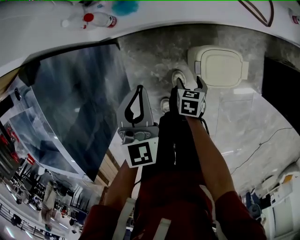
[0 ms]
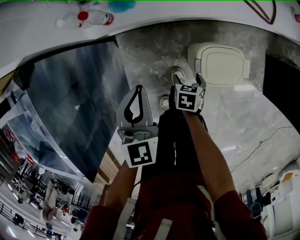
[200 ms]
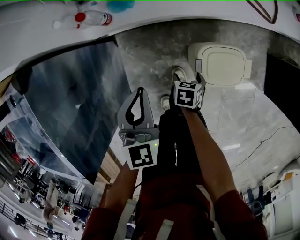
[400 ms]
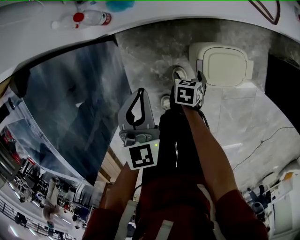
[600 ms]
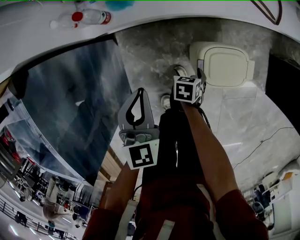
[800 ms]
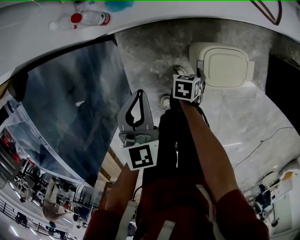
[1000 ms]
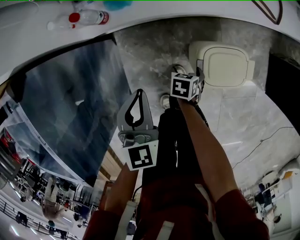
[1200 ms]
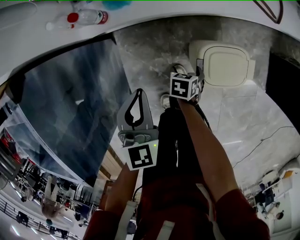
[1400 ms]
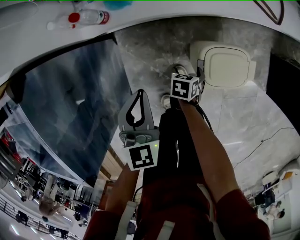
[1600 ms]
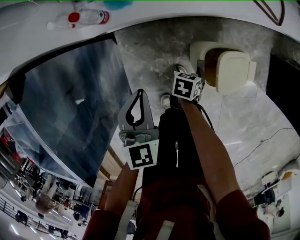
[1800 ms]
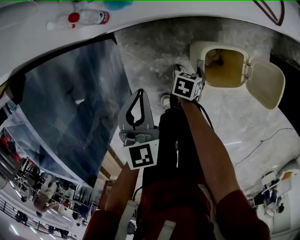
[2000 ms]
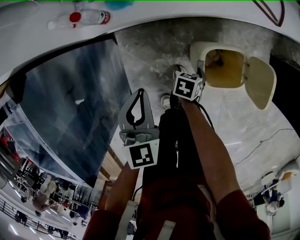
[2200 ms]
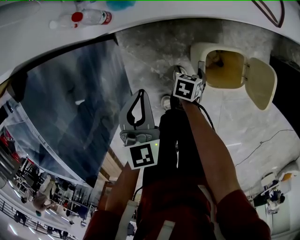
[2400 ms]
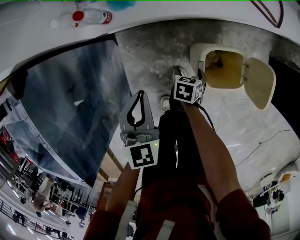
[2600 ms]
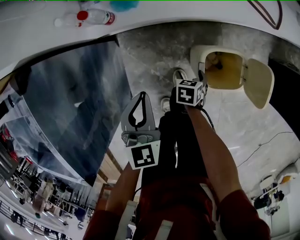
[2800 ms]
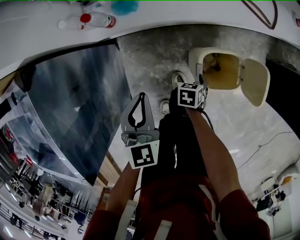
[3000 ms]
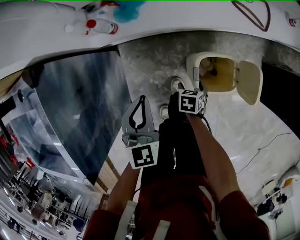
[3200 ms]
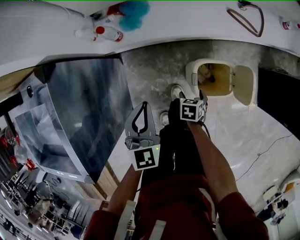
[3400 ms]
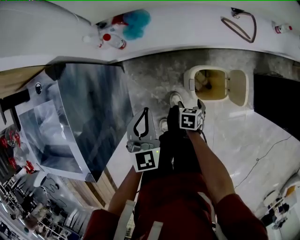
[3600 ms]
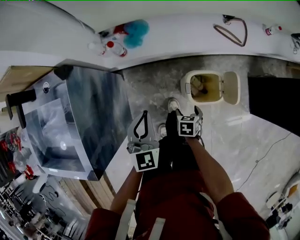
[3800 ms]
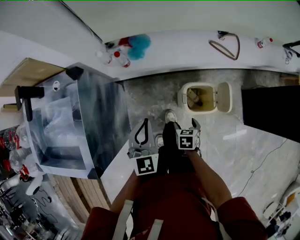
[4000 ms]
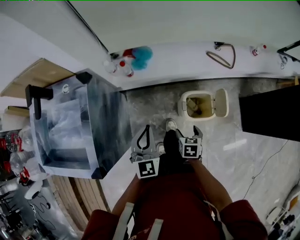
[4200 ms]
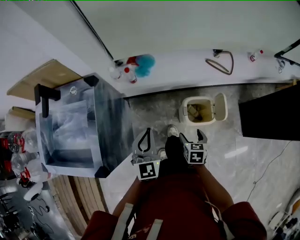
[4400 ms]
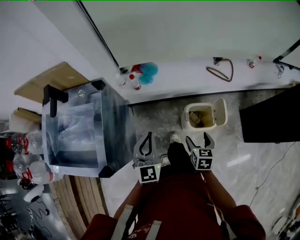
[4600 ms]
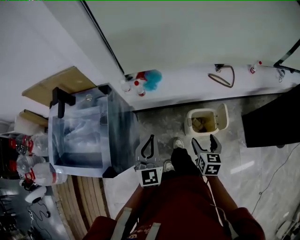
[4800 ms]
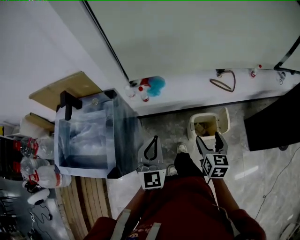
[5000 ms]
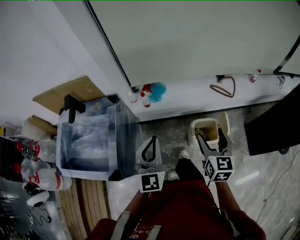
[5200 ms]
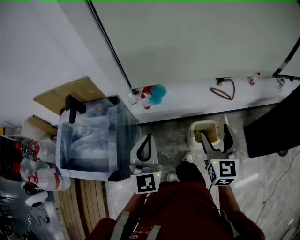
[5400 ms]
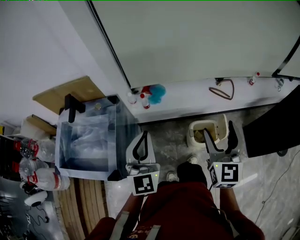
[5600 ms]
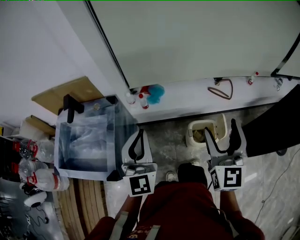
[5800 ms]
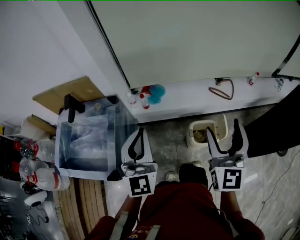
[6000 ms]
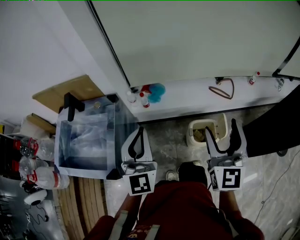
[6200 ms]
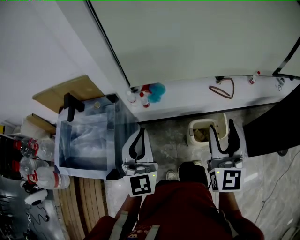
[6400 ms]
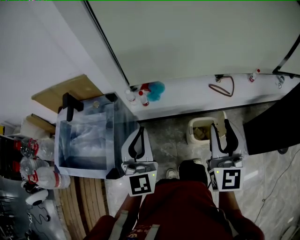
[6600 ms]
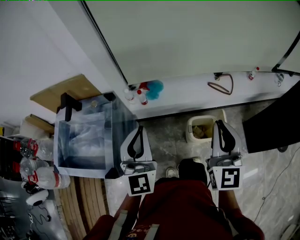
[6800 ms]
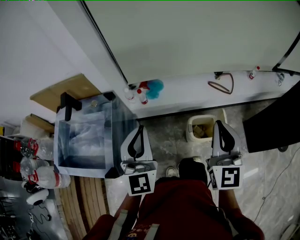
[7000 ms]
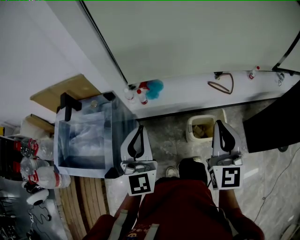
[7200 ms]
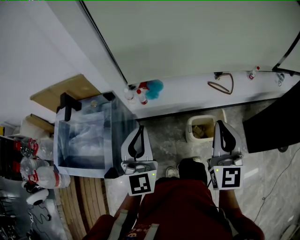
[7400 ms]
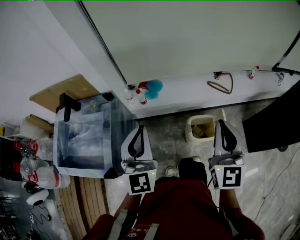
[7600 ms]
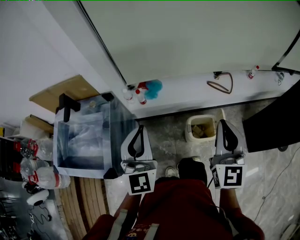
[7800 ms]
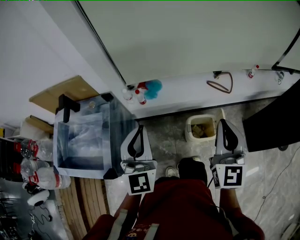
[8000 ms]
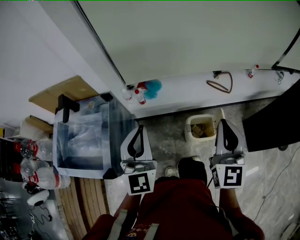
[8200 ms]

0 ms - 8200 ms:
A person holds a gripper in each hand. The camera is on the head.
0 ms - 1600 ms: The grippers both shift downward by about 5 cm.
1600 ms - 3200 ms: The right gripper moves about 5 cm.
3200 ms - 5000 ms: The left gripper moves upward, approximately 30 cm, and turns by approximately 30 degrees; the right gripper shifts approximately 40 cm upward, and tilts its fingers about 50 degrees upward.
5000 ms - 6600 ms: The left gripper heads upward, covering some 10 cm, while the right gripper shifts about 25 cm upward, tilts its fingers approximately 30 degrees upward, and closes.
6600 ms - 8200 ms: The right gripper closes.

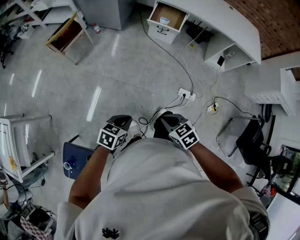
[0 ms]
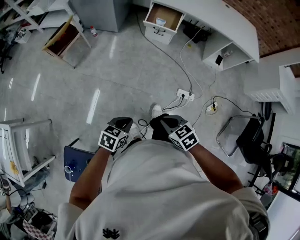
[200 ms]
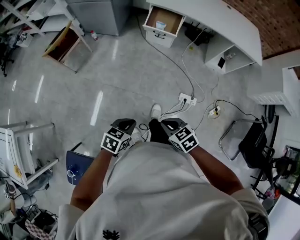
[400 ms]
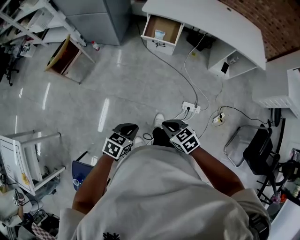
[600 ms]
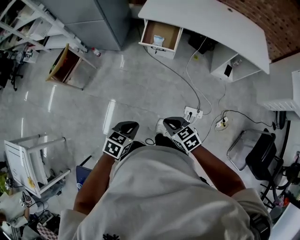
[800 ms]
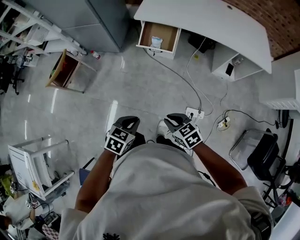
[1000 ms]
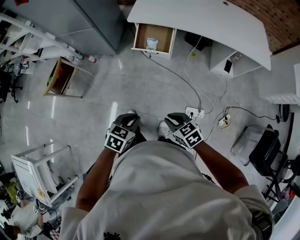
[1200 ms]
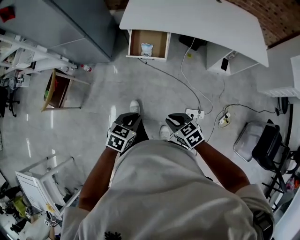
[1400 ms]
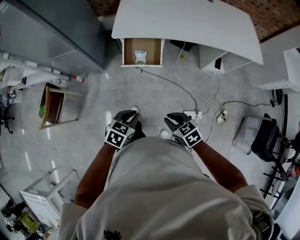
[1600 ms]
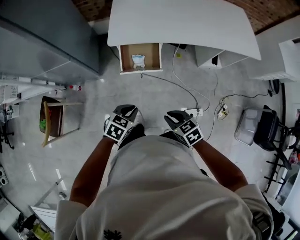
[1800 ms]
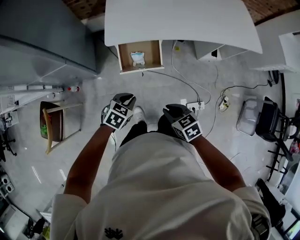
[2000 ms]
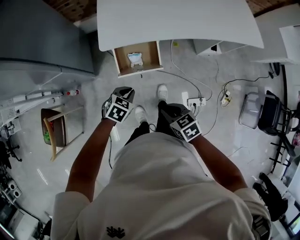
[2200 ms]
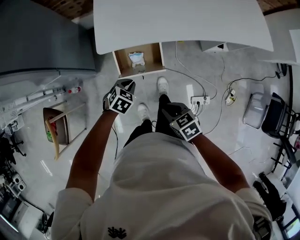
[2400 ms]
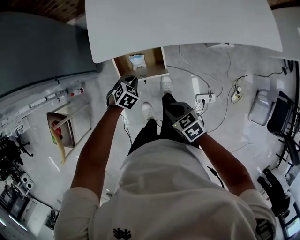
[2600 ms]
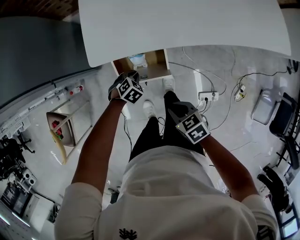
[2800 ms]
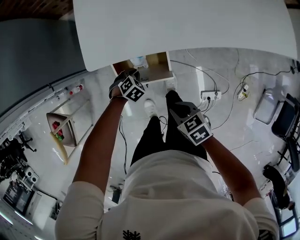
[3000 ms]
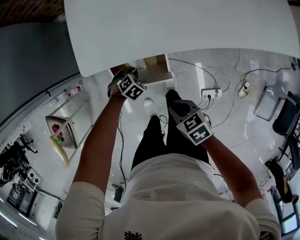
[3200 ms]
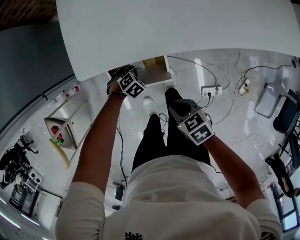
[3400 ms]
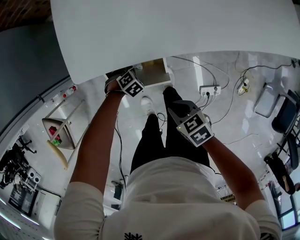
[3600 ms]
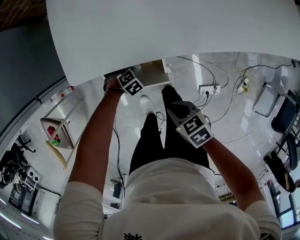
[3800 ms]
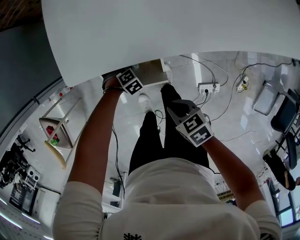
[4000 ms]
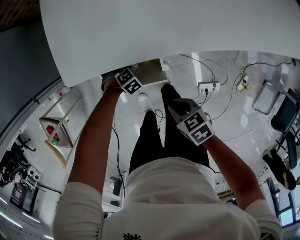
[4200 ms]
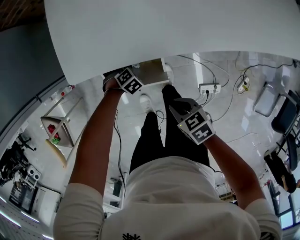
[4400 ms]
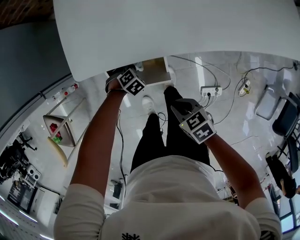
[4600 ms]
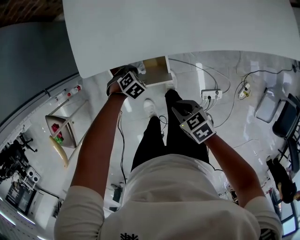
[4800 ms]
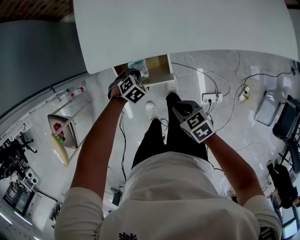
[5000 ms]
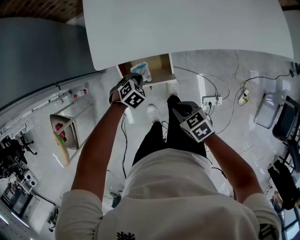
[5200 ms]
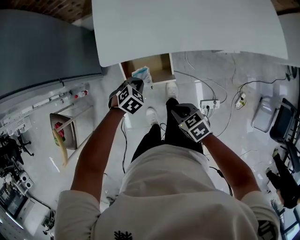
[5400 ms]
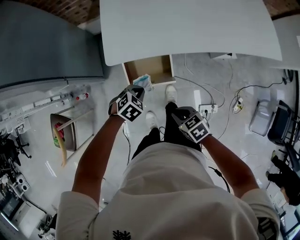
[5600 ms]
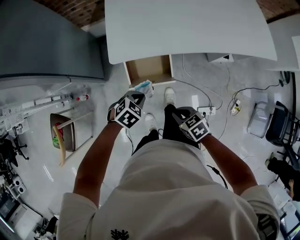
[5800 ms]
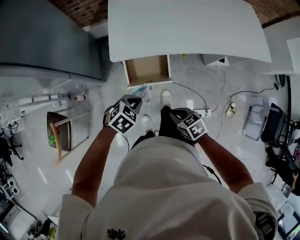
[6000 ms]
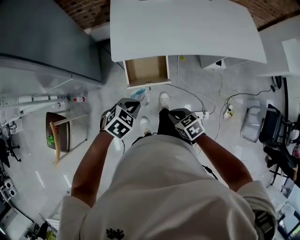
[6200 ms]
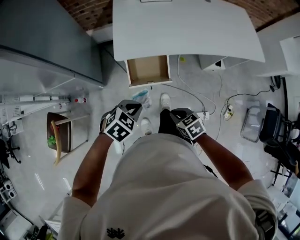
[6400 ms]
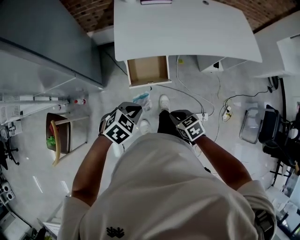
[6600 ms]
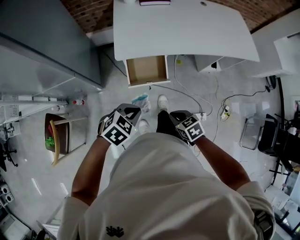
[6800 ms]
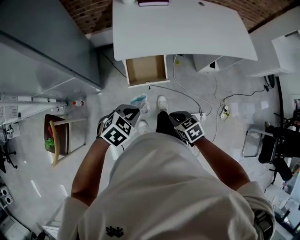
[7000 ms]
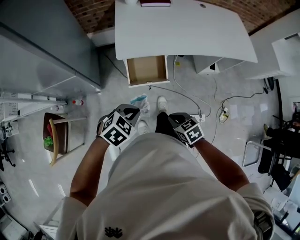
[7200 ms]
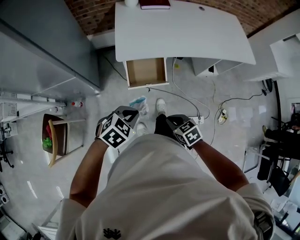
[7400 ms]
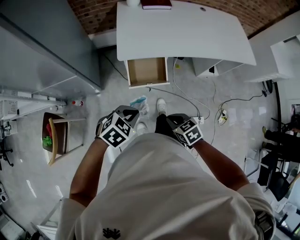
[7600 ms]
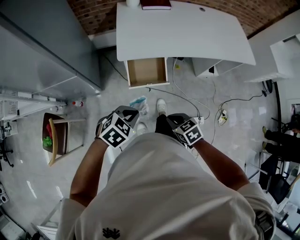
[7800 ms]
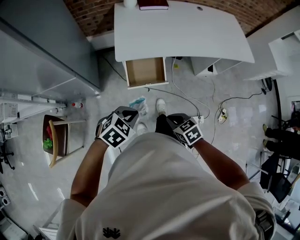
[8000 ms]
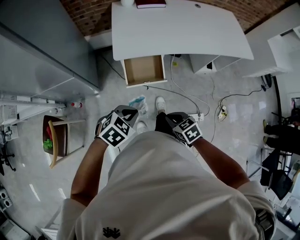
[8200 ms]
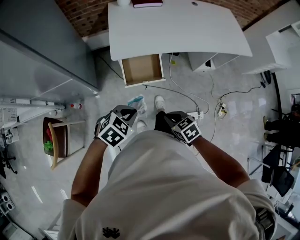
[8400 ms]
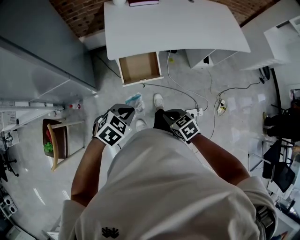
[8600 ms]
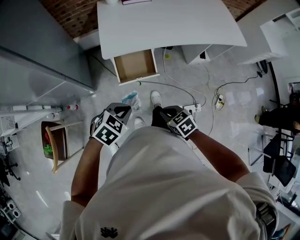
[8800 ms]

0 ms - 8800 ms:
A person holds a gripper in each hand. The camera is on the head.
0 ms - 1400 ms: Both grippers are carried forward, roughly 50 cm.
1400 ms - 3000 ms: The two grippers travel together, some 50 cm. The right gripper changes its angle by approximately 20 degrees; the left gripper changes its angle by roughly 50 degrees.
3000 ms - 4400 ms: The right gripper moves downward, approximately 5 cm, while the left gripper is displaced downward by approximately 10 cm.
4400 ms - 5800 ms: The right gripper shifts approximately 15 cm upward. The left gripper goes some 35 cm upward, and turns by about 30 degrees.
5800 ms - 7400 ms: The right gripper shifts approximately 15 cm backward, upward and to the left, while the left gripper moves backward and upward, roughly 25 cm.
7400 ms - 8800 ms: Both grippers stay put.

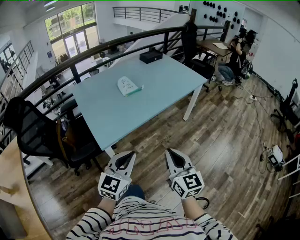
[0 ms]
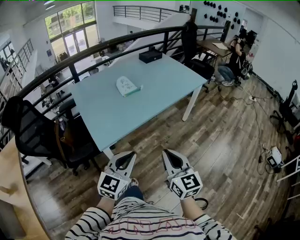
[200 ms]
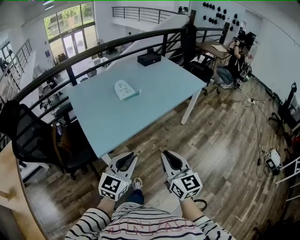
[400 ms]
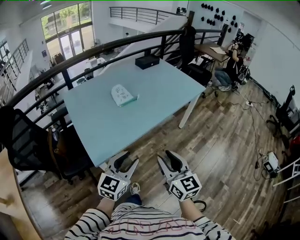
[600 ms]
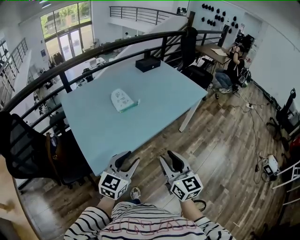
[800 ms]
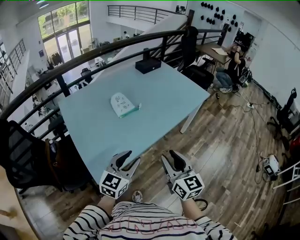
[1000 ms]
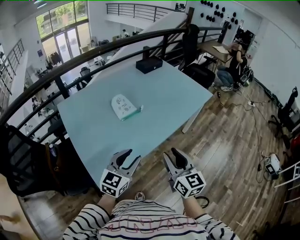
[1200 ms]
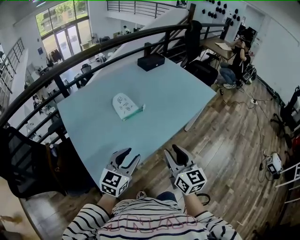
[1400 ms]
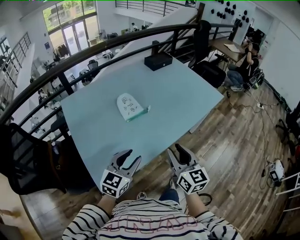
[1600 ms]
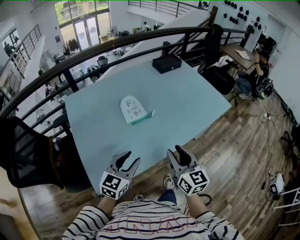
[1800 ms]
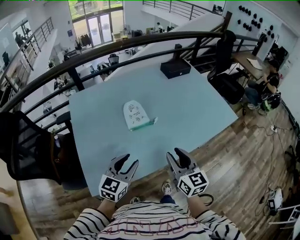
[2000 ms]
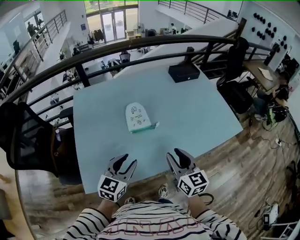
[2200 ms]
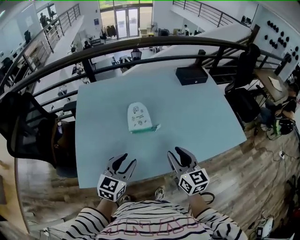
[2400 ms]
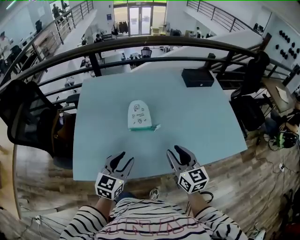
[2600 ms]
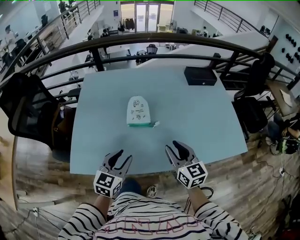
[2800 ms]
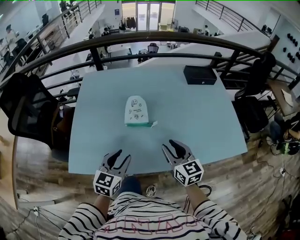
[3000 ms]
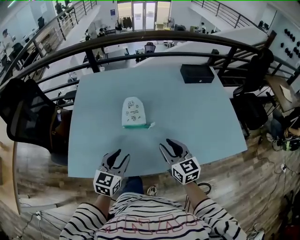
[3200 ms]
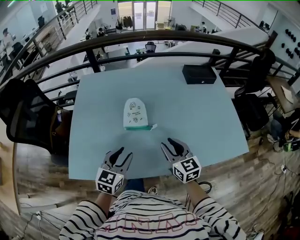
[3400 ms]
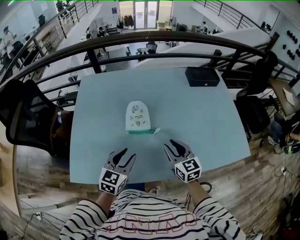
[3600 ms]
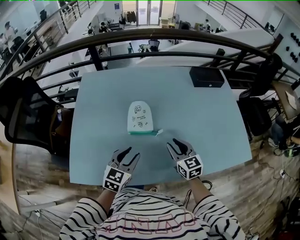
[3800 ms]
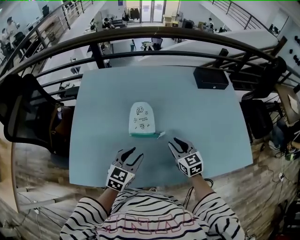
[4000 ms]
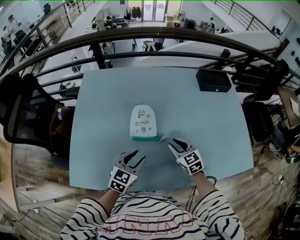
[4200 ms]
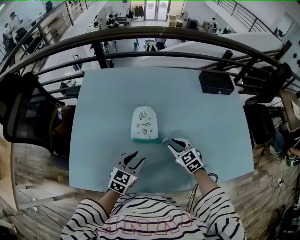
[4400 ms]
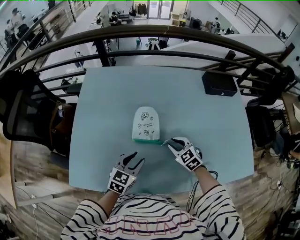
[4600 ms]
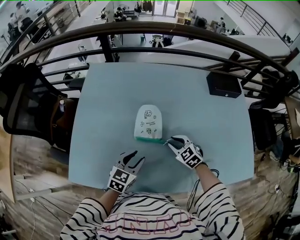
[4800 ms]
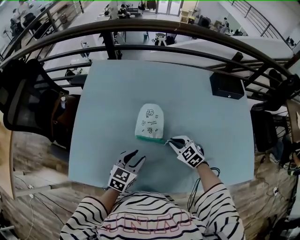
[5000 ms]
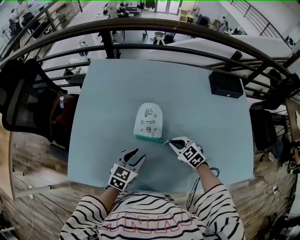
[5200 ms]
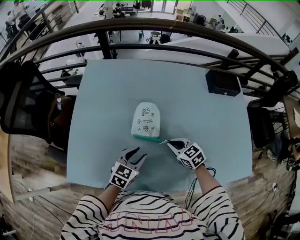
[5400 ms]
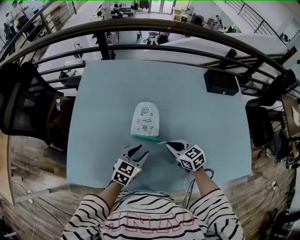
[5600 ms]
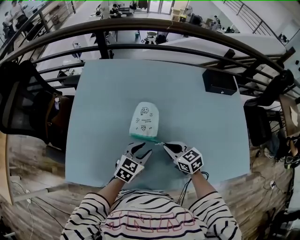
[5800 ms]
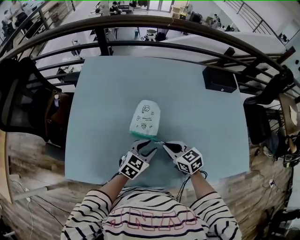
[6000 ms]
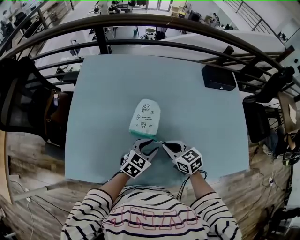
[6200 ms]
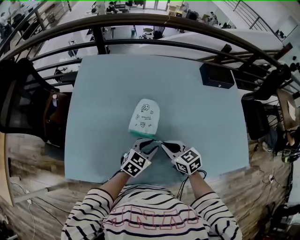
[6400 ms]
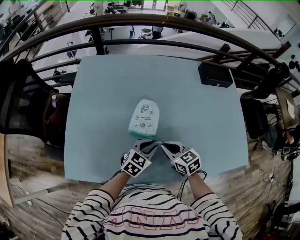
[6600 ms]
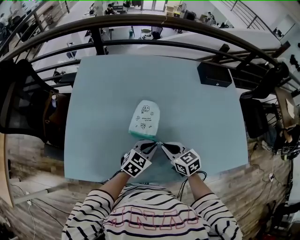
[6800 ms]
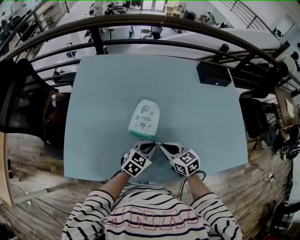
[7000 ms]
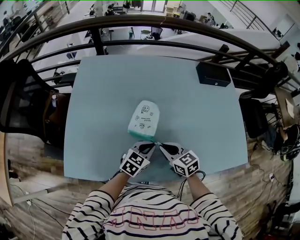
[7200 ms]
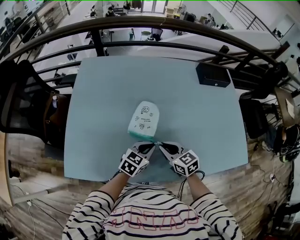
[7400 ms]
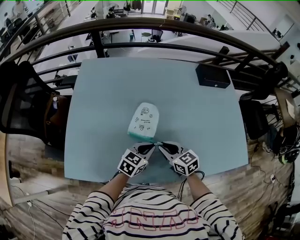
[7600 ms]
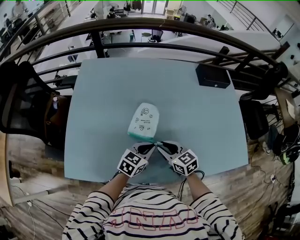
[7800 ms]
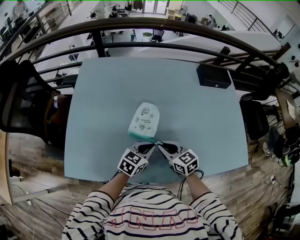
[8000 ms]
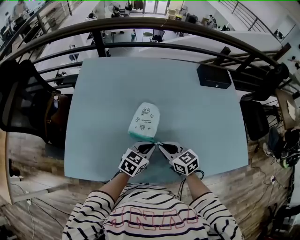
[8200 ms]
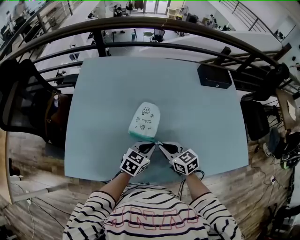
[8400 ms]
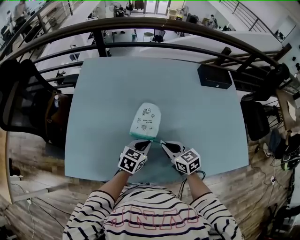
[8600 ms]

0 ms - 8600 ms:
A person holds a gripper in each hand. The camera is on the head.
0 ms - 1400 ms: Both grippers travel together forward, some 30 cm. The right gripper opens up, while the left gripper opens.
1400 ms - 2800 ms: The right gripper moves approximately 30 cm, and changes its angle by about 40 degrees; the left gripper ends up roughly 15 cm from where it was, and changes its angle by about 40 degrees.
2800 ms - 4400 ms: Both grippers travel together forward and downward, roughly 20 cm. The right gripper swivels roughly 40 degrees.
4400 ms - 5800 ms: The right gripper rotates some 20 degrees, and closes.
5800 ms - 7200 ms: The right gripper goes about 5 cm backward. The left gripper moves approximately 5 cm, and closes up.
7200 ms - 8600 ms: The grippers stay close to where they were, moving slightly.
